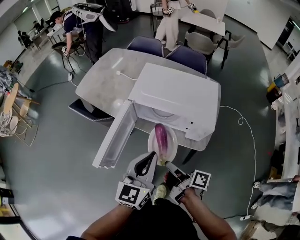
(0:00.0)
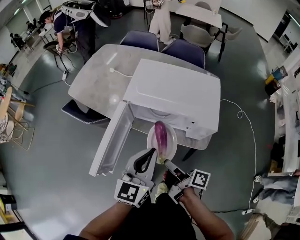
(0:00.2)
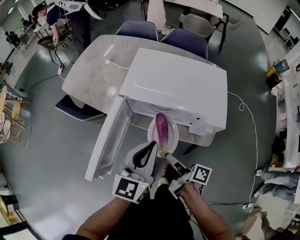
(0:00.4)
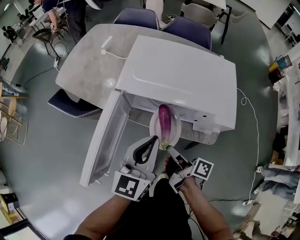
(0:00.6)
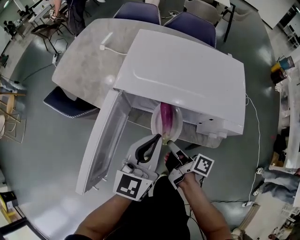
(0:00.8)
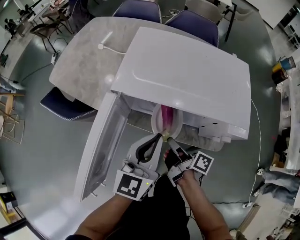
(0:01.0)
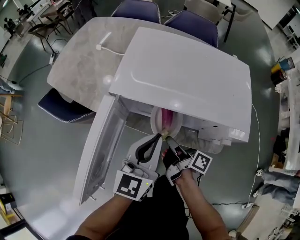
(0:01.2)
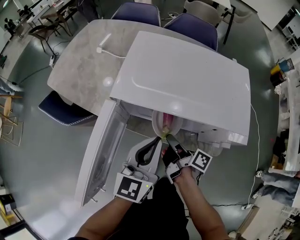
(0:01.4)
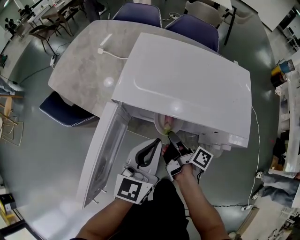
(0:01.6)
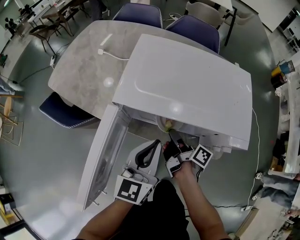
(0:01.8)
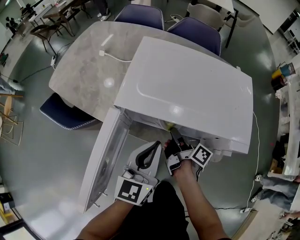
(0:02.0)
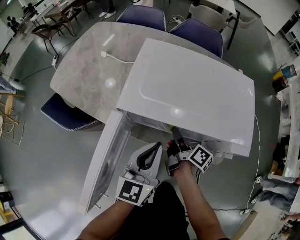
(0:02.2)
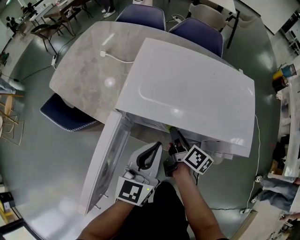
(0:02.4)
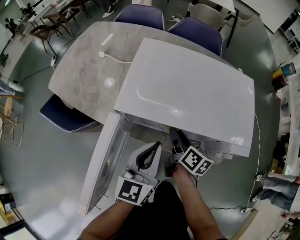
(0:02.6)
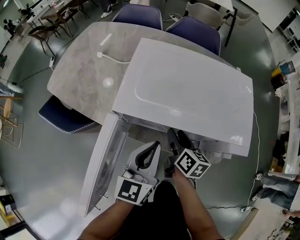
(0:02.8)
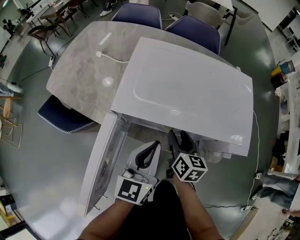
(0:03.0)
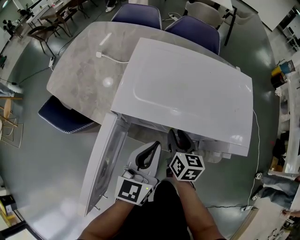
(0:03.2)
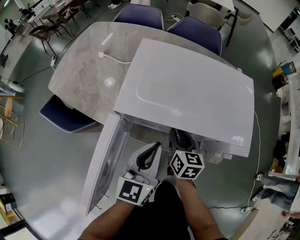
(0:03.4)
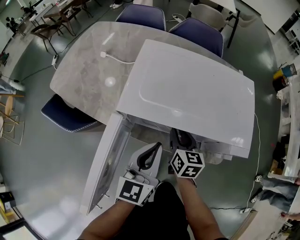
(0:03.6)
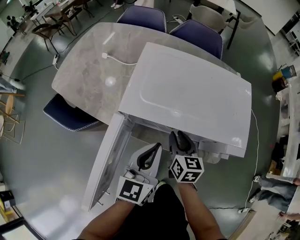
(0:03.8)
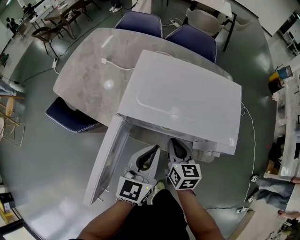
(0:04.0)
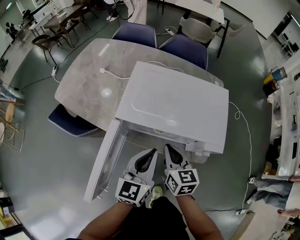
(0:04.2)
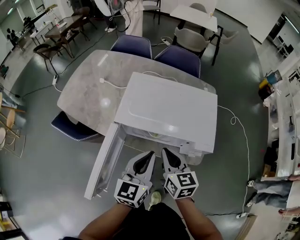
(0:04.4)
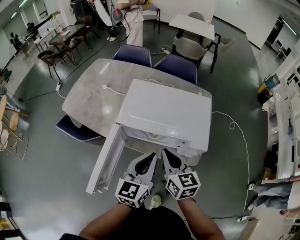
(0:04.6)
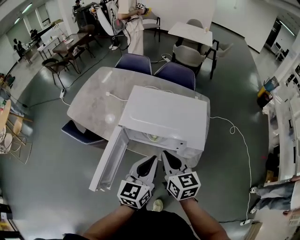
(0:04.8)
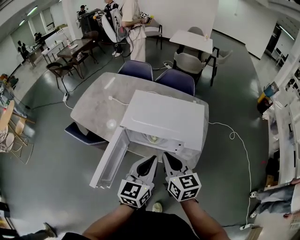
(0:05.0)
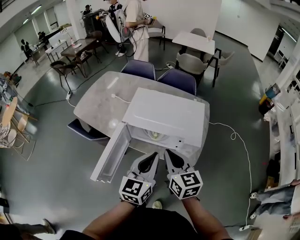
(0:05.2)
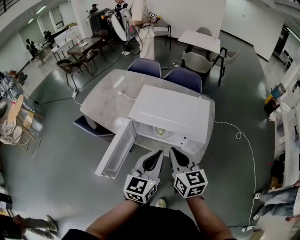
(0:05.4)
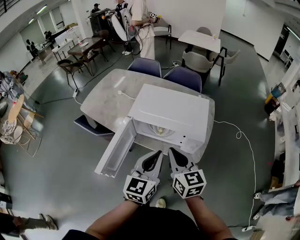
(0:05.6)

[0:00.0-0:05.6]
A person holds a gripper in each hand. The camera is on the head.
0:00.0 to 0:01.4: The two grippers go about 25 cm forward and downward.
0:01.4 to 0:02.8: The right gripper shifts approximately 5 cm forward, changes its angle by some 40 degrees, and opens its fingers.
0:02.8 to 0:04.2: The left gripper heads upward, covering approximately 5 cm. The right gripper is displaced upward and backward by roughly 15 cm, swivels about 30 degrees, and closes up.
0:04.2 to 0:05.6: The left gripper travels backward, upward and to the right by some 20 cm; the right gripper heads upward and backward, covering approximately 20 cm.

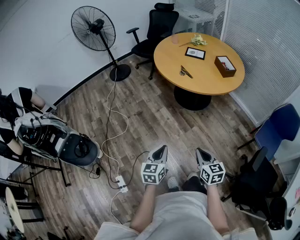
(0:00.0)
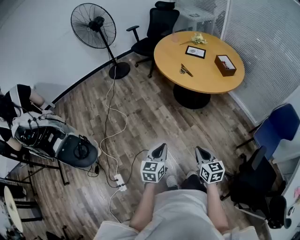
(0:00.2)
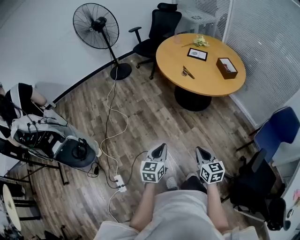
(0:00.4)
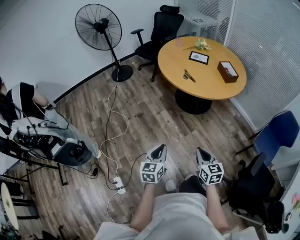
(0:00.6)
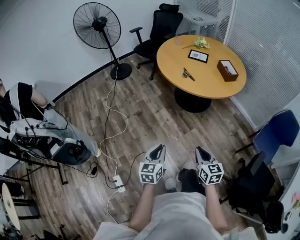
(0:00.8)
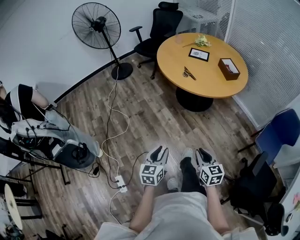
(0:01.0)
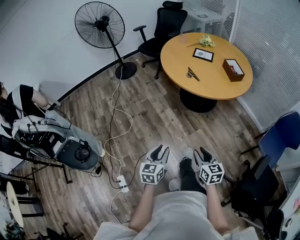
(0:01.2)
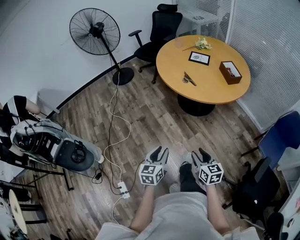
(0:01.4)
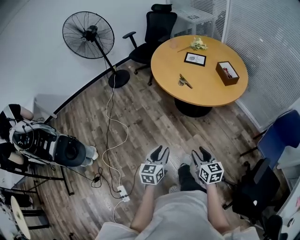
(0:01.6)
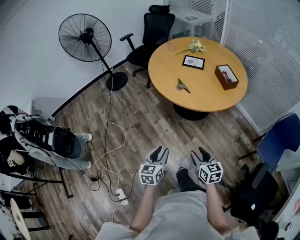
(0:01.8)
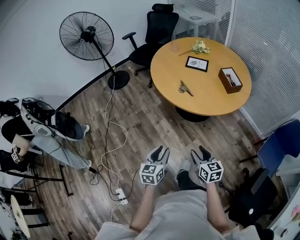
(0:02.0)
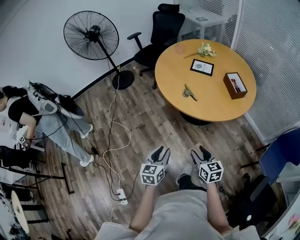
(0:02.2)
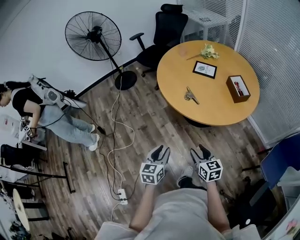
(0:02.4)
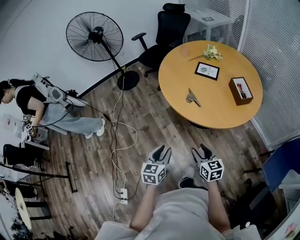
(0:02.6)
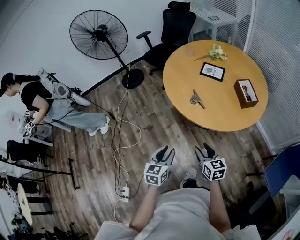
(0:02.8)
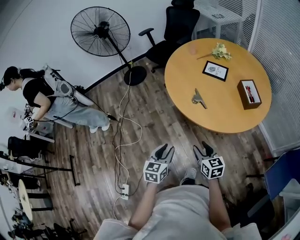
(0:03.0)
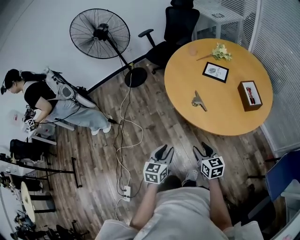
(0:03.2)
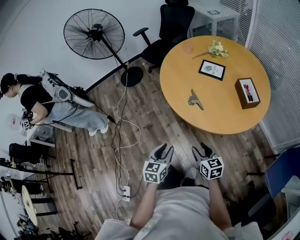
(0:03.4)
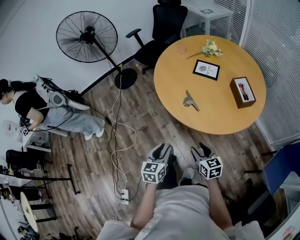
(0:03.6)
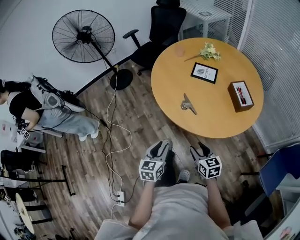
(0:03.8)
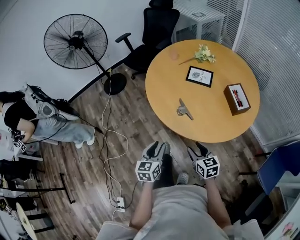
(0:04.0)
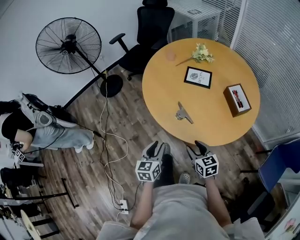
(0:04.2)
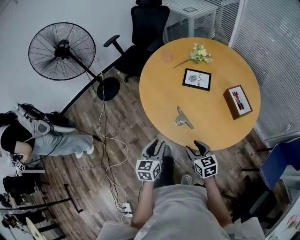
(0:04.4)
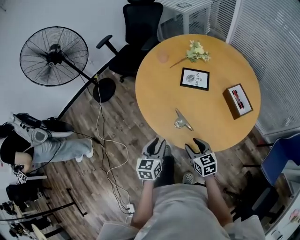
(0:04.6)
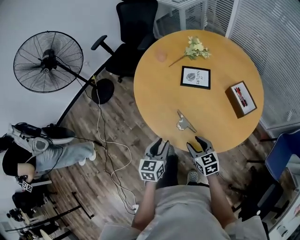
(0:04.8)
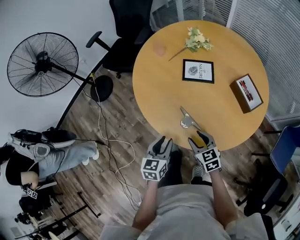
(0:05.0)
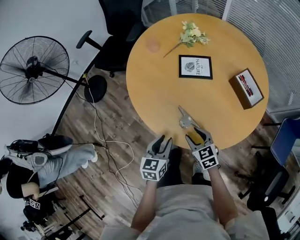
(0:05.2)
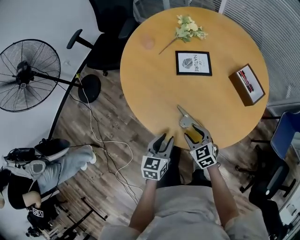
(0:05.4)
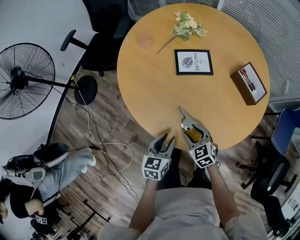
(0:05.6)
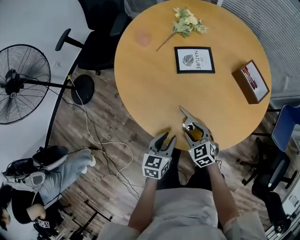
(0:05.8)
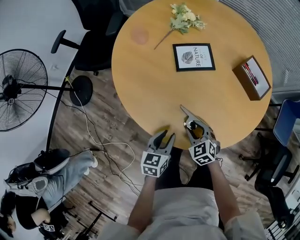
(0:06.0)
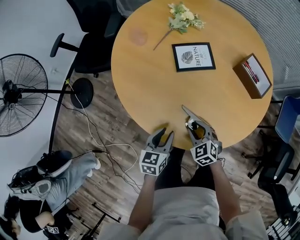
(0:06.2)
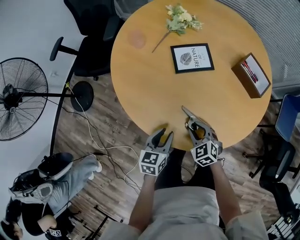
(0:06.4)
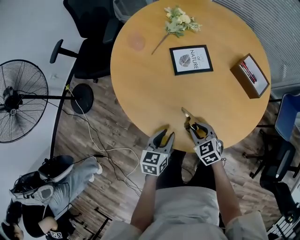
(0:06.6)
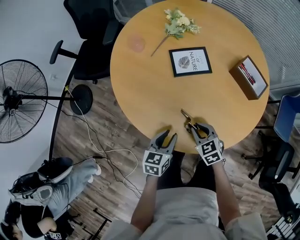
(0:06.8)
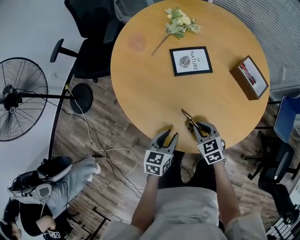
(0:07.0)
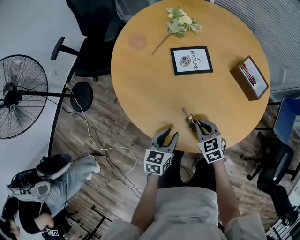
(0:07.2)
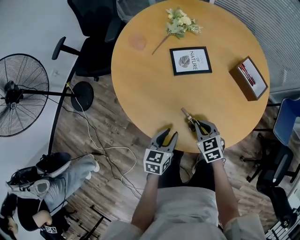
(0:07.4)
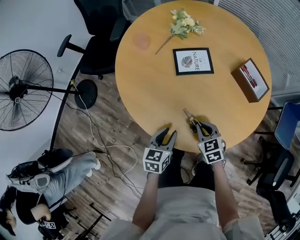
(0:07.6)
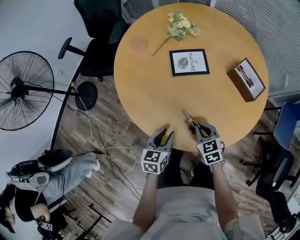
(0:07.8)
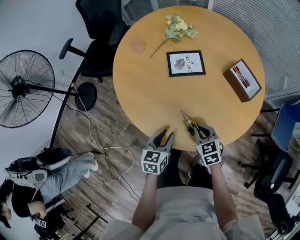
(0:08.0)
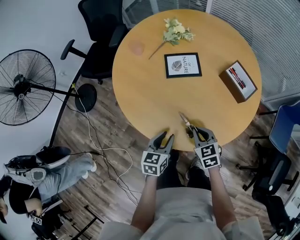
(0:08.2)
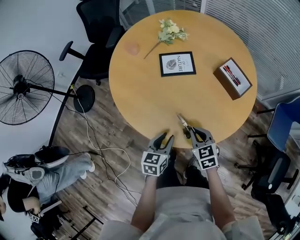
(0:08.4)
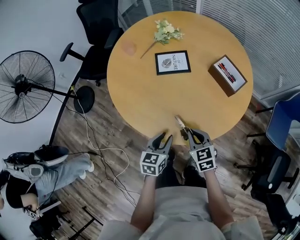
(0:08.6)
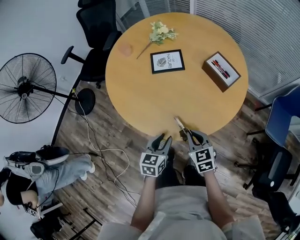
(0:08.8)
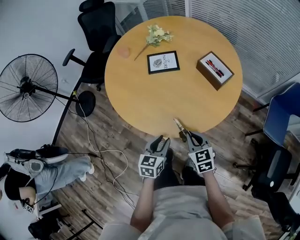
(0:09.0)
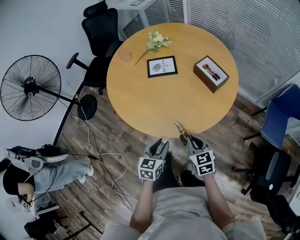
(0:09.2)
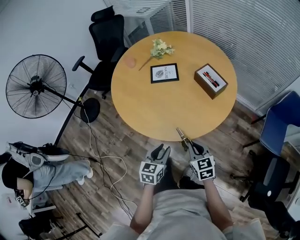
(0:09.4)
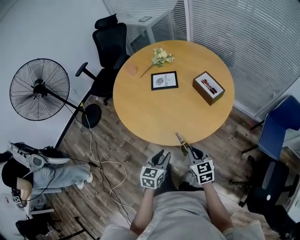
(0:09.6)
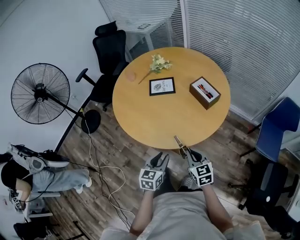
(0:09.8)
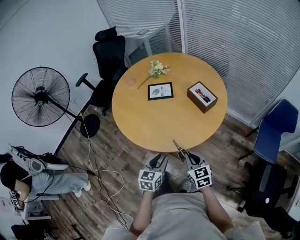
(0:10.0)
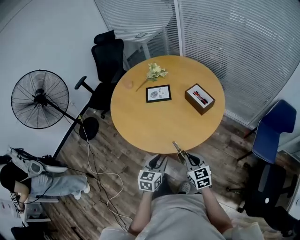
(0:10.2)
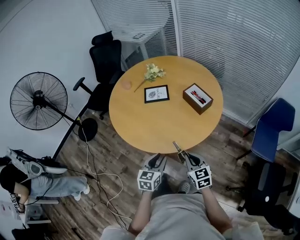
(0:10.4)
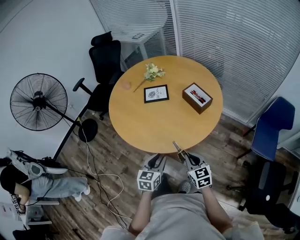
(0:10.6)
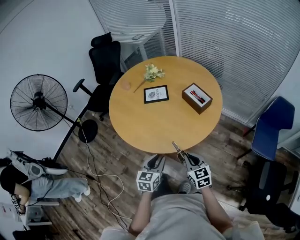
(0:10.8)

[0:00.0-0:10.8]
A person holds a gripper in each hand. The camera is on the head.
0:00.0 to 0:01.6: The grippers both shift forward by roughly 15 cm. The left gripper opens its fingers. Meanwhile the right gripper opens its fingers.
0:01.6 to 0:03.0: The grippers both shift forward by about 20 cm.
0:03.0 to 0:04.6: The two grippers go about 25 cm forward.
0:04.6 to 0:06.2: The right gripper changes place by approximately 20 cm, and swivels roughly 30 degrees, while the left gripper changes place by about 20 cm, and changes its angle by about 30 degrees.
0:06.2 to 0:07.8: The right gripper shifts some 5 cm to the right, and closes its fingers.
0:07.8 to 0:09.2: The right gripper travels backward, to the right and upward by about 20 cm. Meanwhile the left gripper is displaced backward and to the right by some 20 cm.
0:09.2 to 0:10.8: The left gripper heads upward, covering some 5 cm. The right gripper travels backward and upward by about 10 cm.

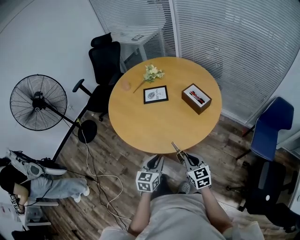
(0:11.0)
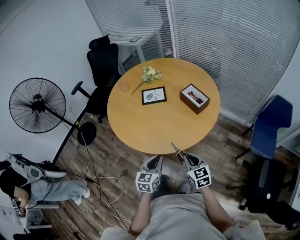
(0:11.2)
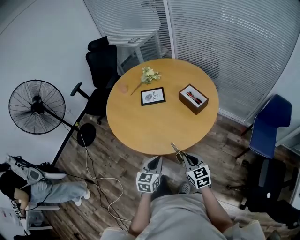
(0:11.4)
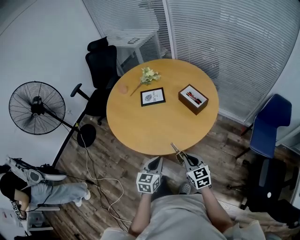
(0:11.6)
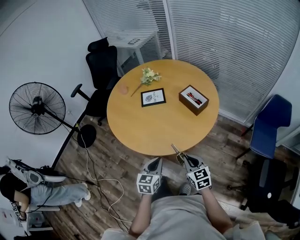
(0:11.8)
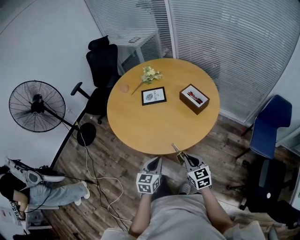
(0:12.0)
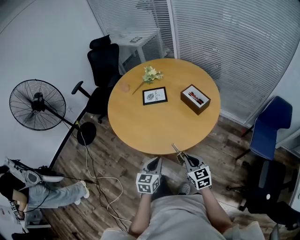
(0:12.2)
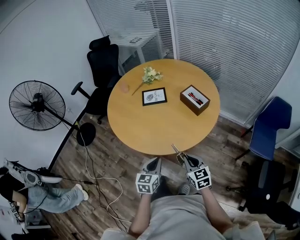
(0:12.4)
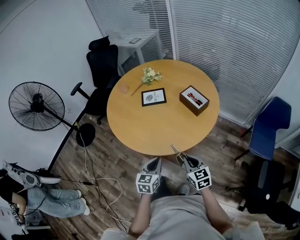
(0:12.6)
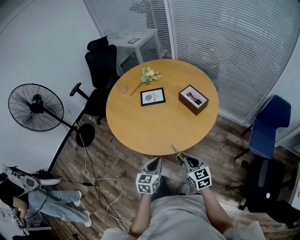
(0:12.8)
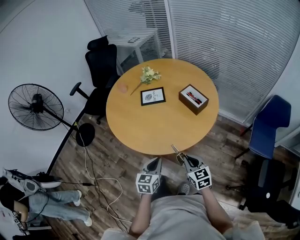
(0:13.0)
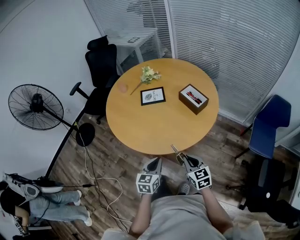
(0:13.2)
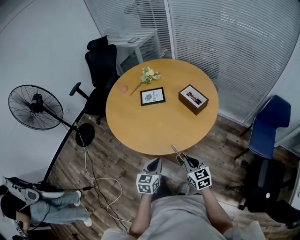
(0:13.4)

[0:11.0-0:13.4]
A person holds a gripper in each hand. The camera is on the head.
0:11.0 to 0:13.4: Both grippers stay about where they are.

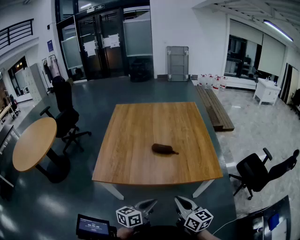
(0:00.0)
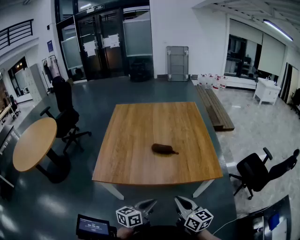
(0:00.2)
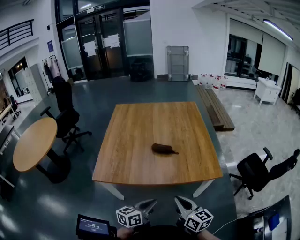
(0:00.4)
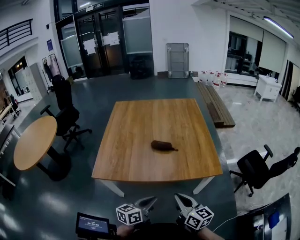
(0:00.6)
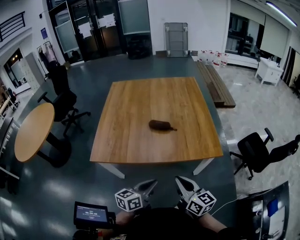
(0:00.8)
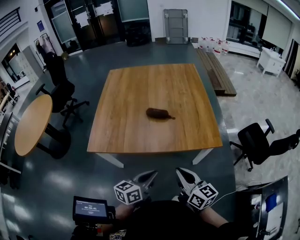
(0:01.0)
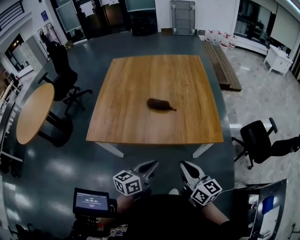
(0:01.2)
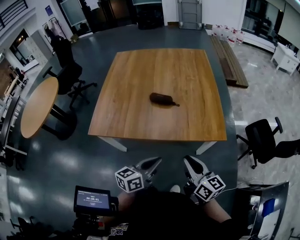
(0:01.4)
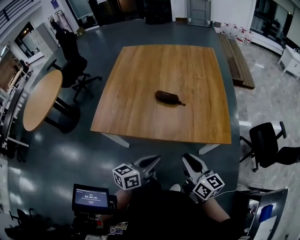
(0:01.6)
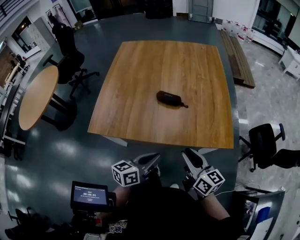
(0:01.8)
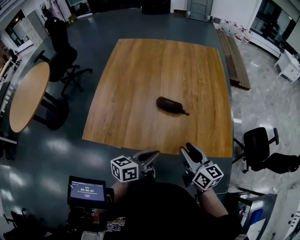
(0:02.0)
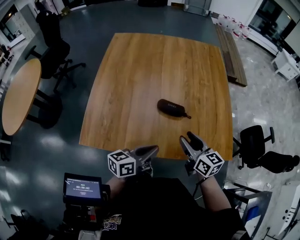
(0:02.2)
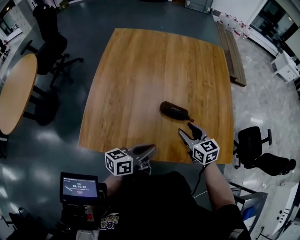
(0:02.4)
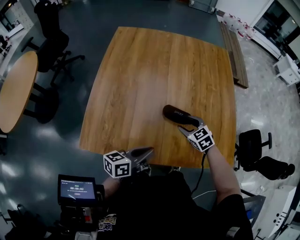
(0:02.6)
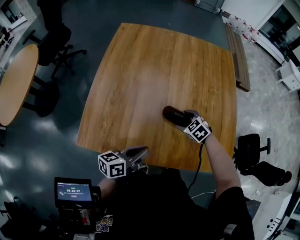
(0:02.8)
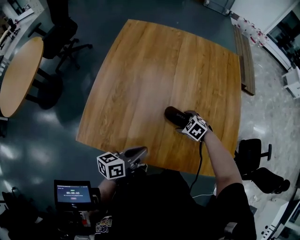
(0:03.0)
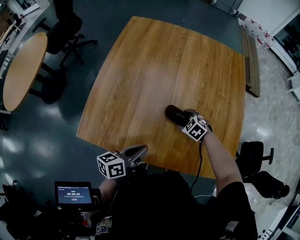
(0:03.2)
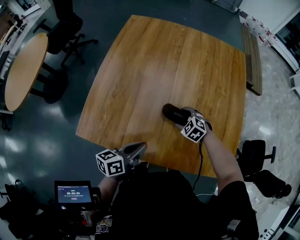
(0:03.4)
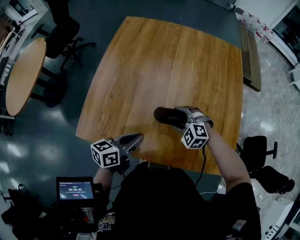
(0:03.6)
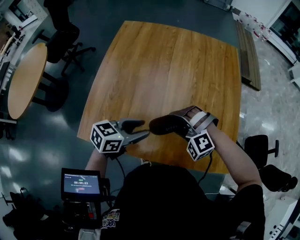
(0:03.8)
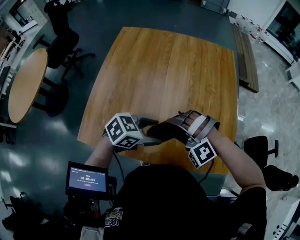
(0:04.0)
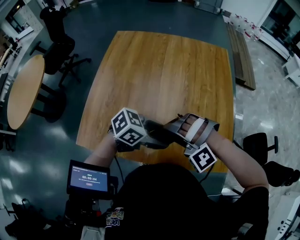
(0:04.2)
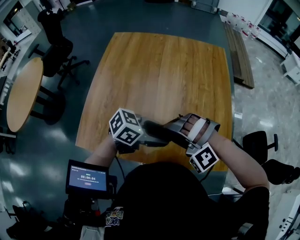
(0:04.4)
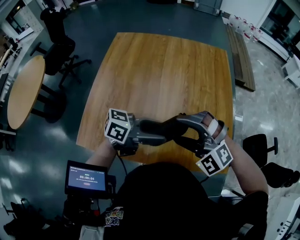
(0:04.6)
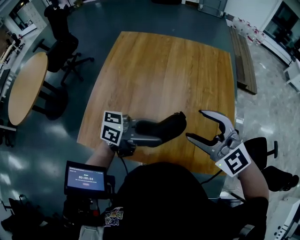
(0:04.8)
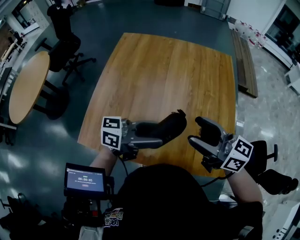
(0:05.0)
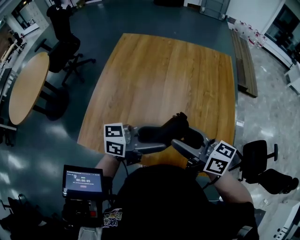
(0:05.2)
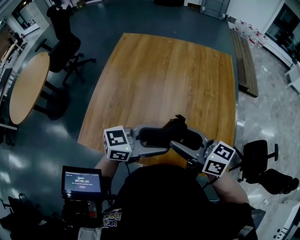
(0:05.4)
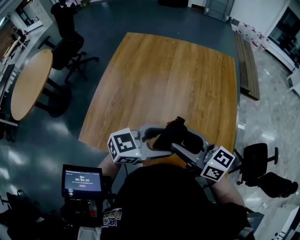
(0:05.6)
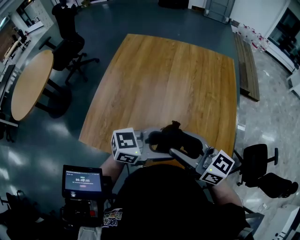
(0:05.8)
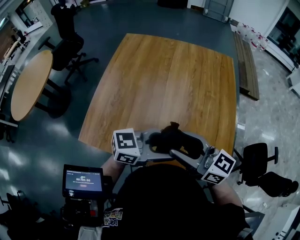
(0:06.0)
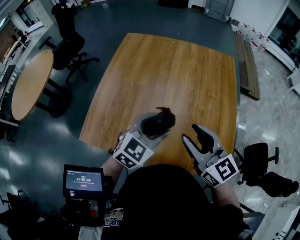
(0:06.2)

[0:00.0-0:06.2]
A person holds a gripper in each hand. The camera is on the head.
0:00.0 to 0:01.6: The two grippers go roughly 5 cm to the right.
0:01.6 to 0:03.2: The left gripper moves forward and to the left, approximately 25 cm; the right gripper shifts some 40 cm forward and downward, points its fingers roughly 60 degrees further downward, and opens its fingers.
0:03.2 to 0:04.6: The right gripper goes roughly 30 cm upward, and points its fingers about 40 degrees further upward; the left gripper travels upward by about 15 cm, swivels some 50 degrees, and opens.
0:04.6 to 0:06.2: The left gripper ends up about 5 cm from where it was, and rotates approximately 70 degrees; the right gripper rolls clockwise, seen from behind, by some 60 degrees, and closes.
